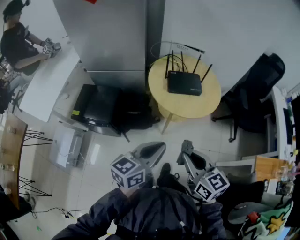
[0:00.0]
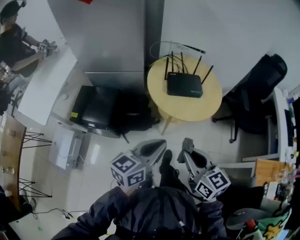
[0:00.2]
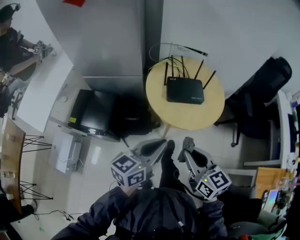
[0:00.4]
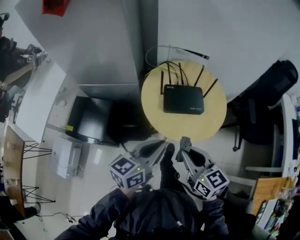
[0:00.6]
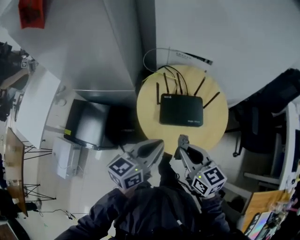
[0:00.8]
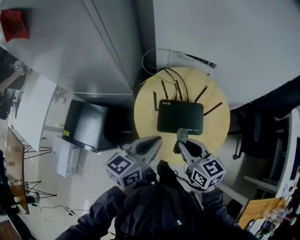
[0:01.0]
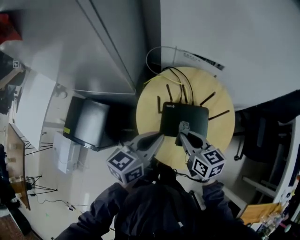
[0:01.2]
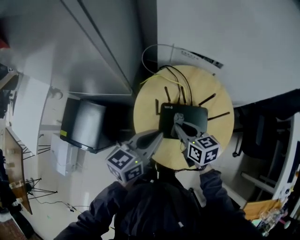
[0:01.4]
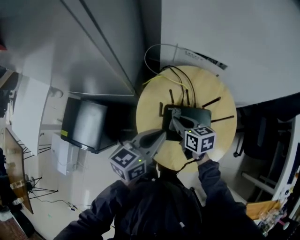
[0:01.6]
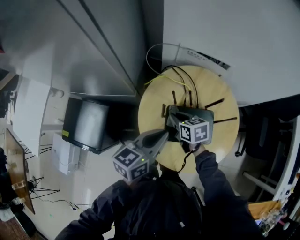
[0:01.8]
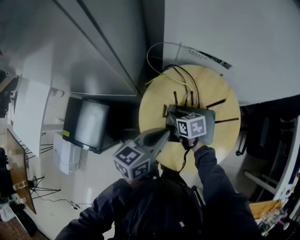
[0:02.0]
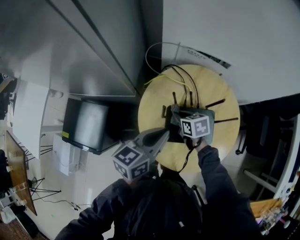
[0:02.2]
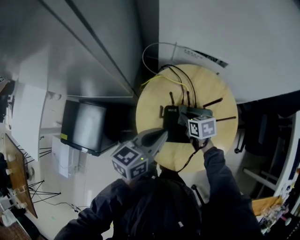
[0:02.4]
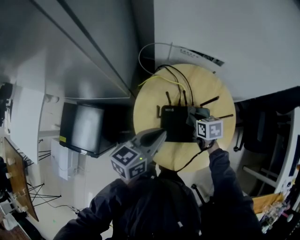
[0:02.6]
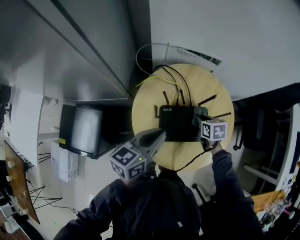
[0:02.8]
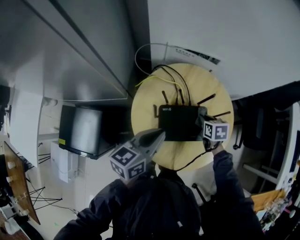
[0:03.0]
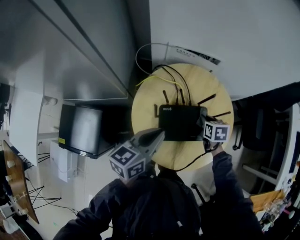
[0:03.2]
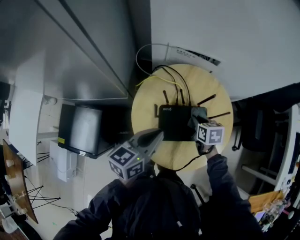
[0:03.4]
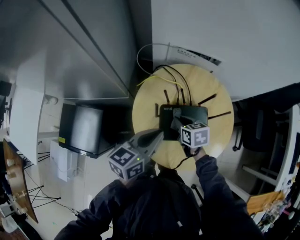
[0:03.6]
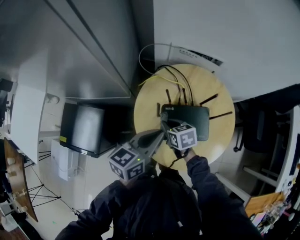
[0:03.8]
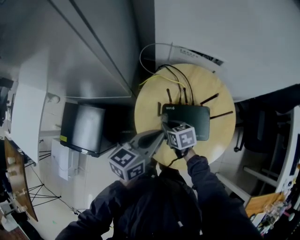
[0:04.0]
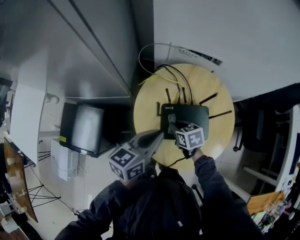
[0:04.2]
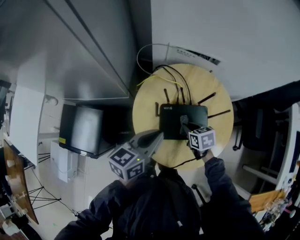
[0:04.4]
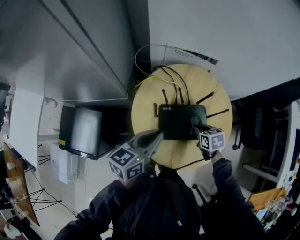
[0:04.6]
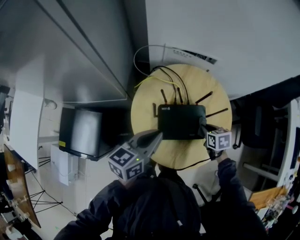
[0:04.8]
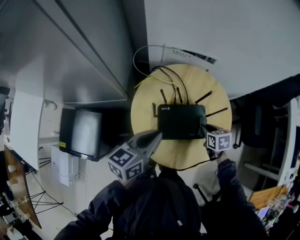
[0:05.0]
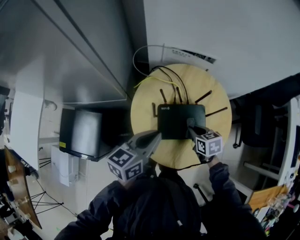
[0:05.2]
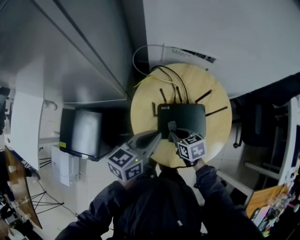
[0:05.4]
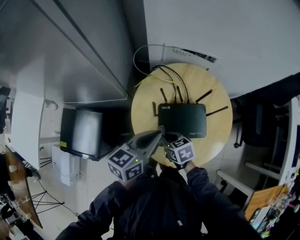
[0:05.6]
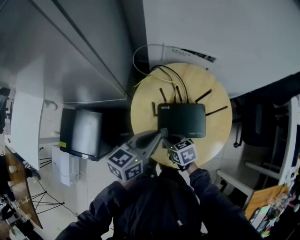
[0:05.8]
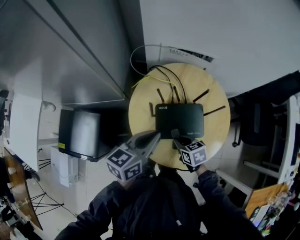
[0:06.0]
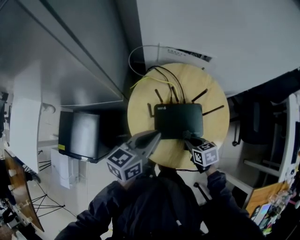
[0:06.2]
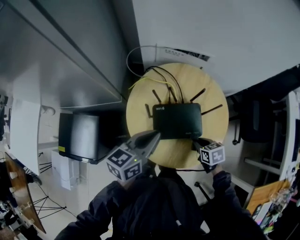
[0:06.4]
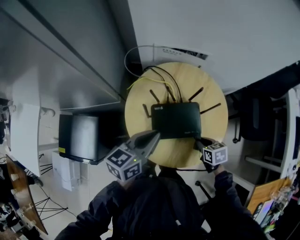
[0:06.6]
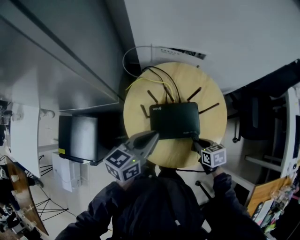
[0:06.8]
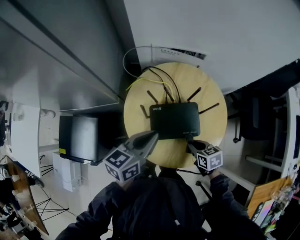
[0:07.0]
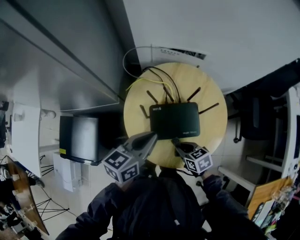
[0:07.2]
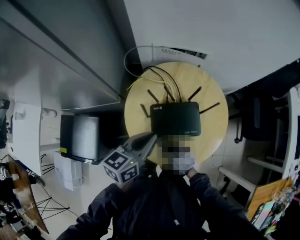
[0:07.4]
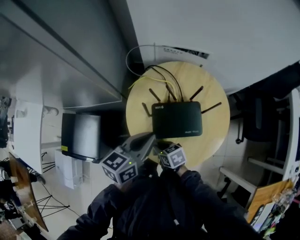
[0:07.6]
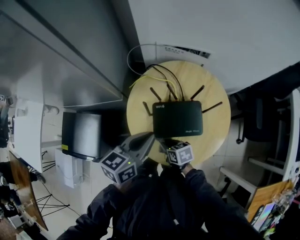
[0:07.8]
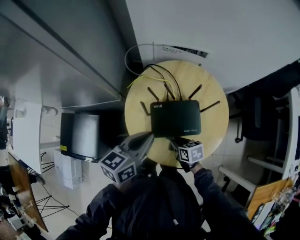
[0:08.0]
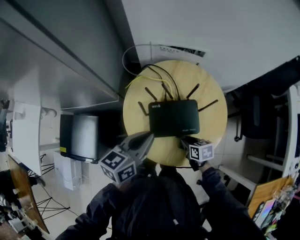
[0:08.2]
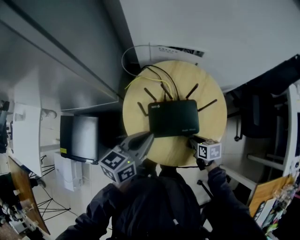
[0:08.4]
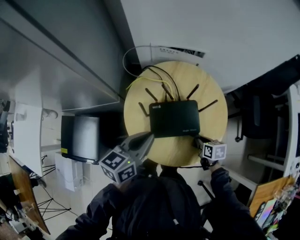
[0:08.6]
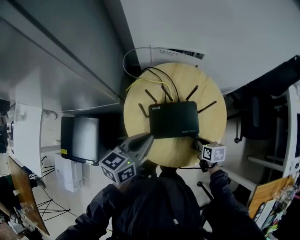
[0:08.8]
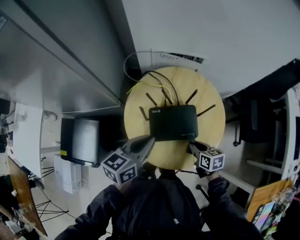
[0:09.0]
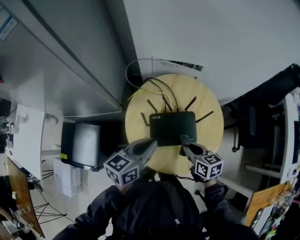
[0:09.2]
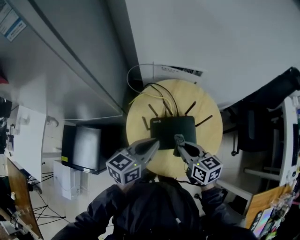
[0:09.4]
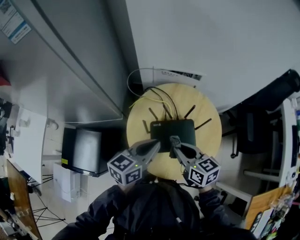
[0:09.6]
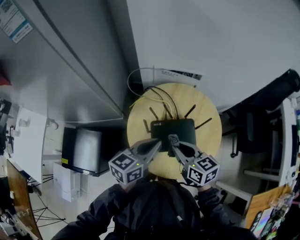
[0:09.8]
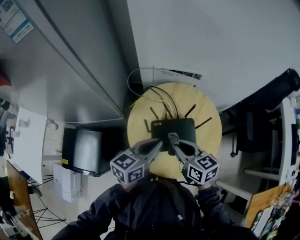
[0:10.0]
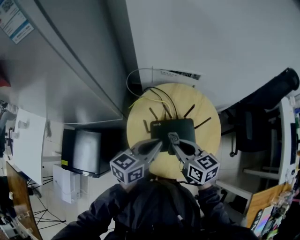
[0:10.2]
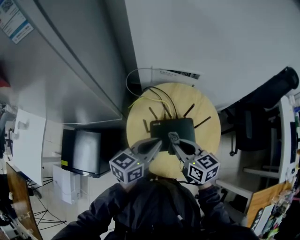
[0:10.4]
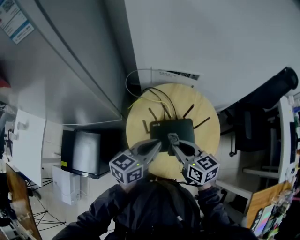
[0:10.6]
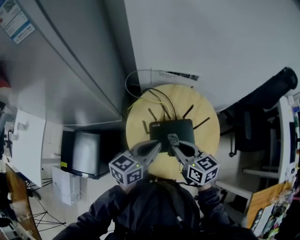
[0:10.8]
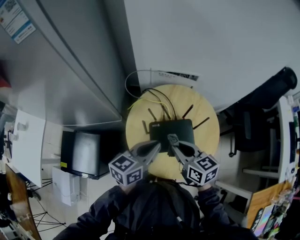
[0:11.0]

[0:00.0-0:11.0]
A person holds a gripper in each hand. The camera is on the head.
0:00.0 to 0:01.6: The two grippers travel together, forward, approximately 50 cm. The right gripper rotates about 30 degrees.
0:01.6 to 0:03.2: The right gripper goes approximately 20 cm to the right, and swivels approximately 30 degrees.
0:03.2 to 0:04.8: The right gripper travels backward by about 5 cm, and travels to the left and back again, roughly 20 cm each way.
0:04.8 to 0:06.2: The right gripper goes about 10 cm backward, and moves approximately 20 cm to the left and comes back.
0:06.2 to 0:07.8: The right gripper shifts roughly 10 cm to the left.
0:07.8 to 0:09.4: The right gripper travels upward and to the right by roughly 20 cm, and turns by some 30 degrees.
0:09.4 to 0:11.0: There are only small adjustments of the grippers.

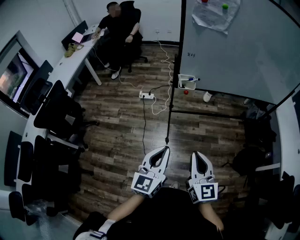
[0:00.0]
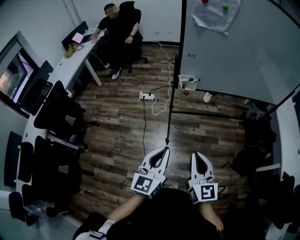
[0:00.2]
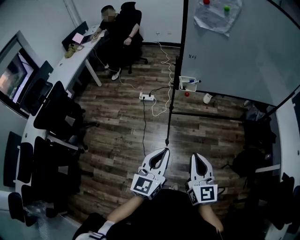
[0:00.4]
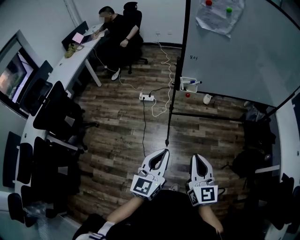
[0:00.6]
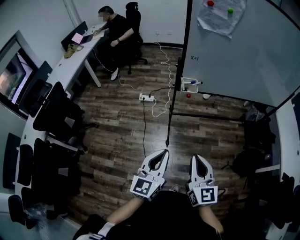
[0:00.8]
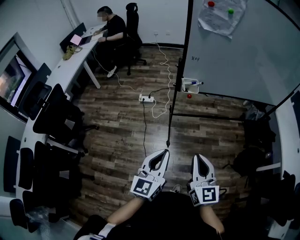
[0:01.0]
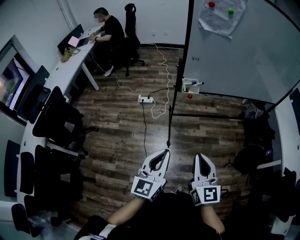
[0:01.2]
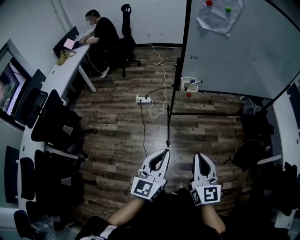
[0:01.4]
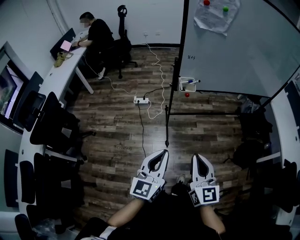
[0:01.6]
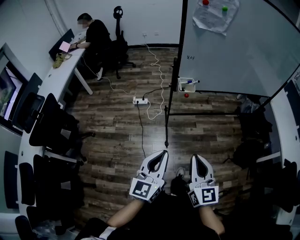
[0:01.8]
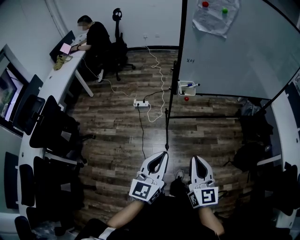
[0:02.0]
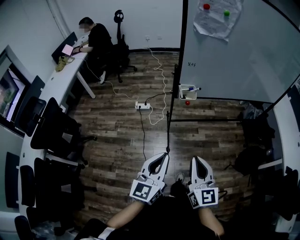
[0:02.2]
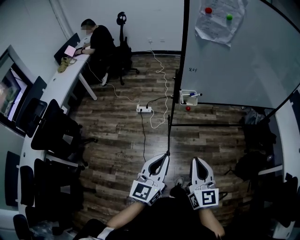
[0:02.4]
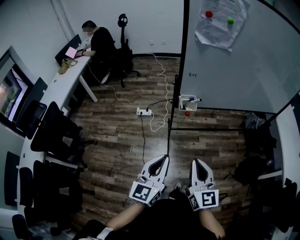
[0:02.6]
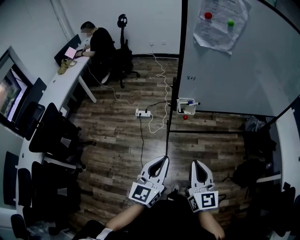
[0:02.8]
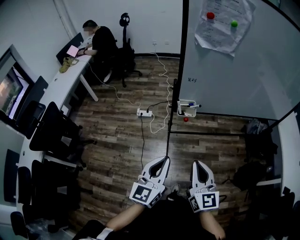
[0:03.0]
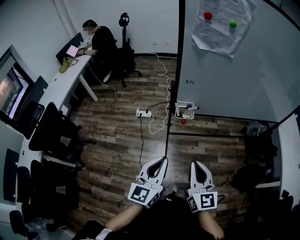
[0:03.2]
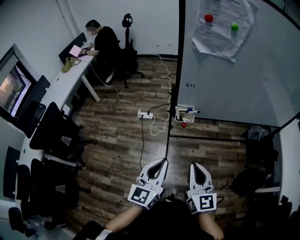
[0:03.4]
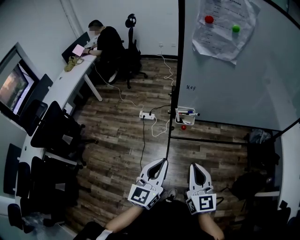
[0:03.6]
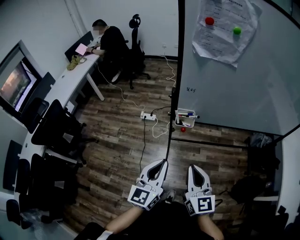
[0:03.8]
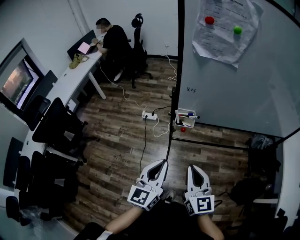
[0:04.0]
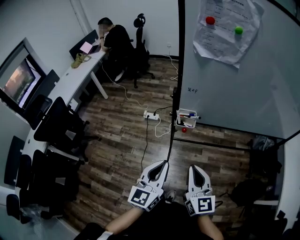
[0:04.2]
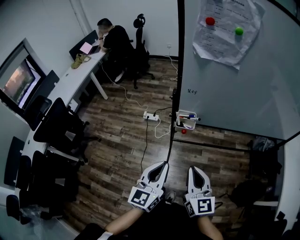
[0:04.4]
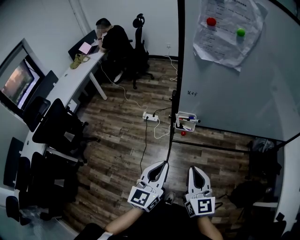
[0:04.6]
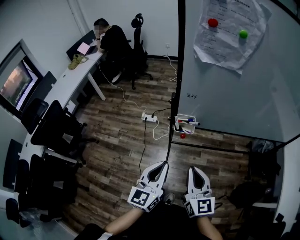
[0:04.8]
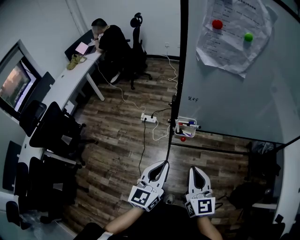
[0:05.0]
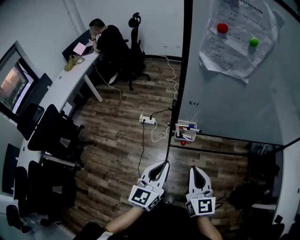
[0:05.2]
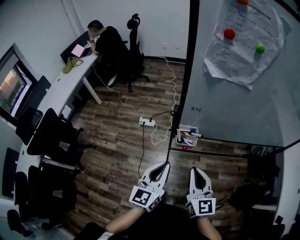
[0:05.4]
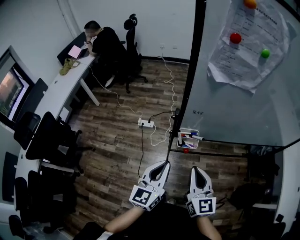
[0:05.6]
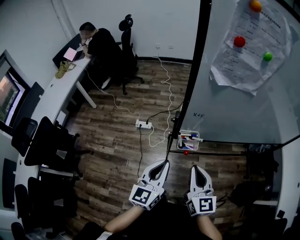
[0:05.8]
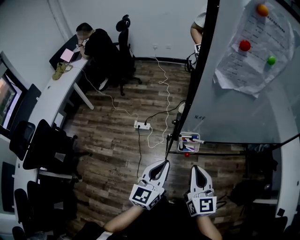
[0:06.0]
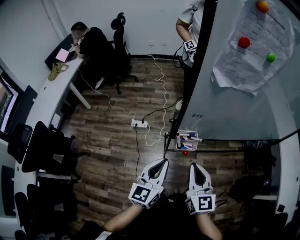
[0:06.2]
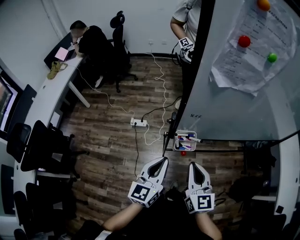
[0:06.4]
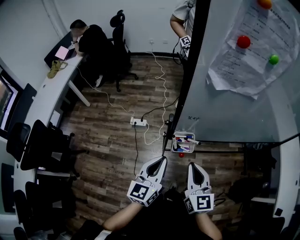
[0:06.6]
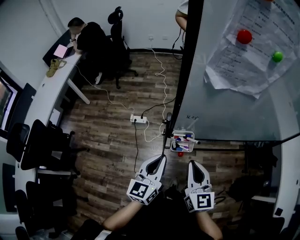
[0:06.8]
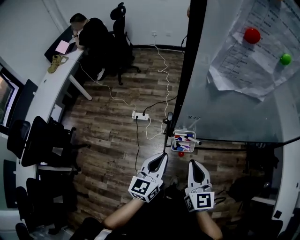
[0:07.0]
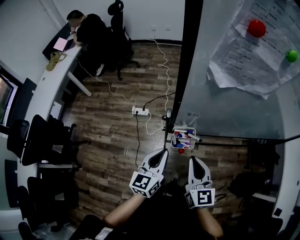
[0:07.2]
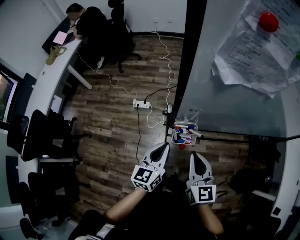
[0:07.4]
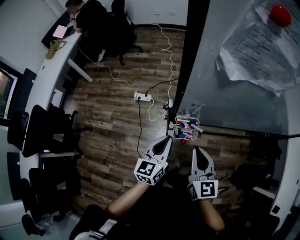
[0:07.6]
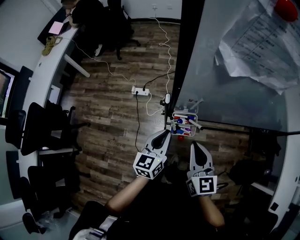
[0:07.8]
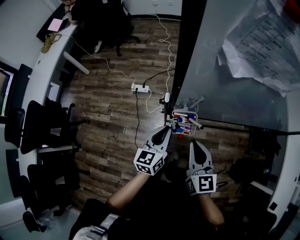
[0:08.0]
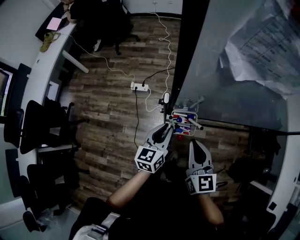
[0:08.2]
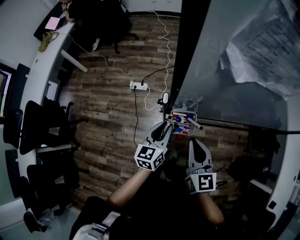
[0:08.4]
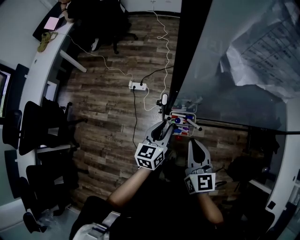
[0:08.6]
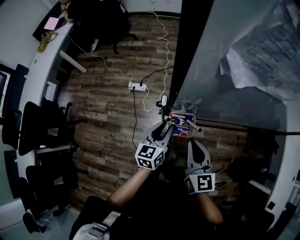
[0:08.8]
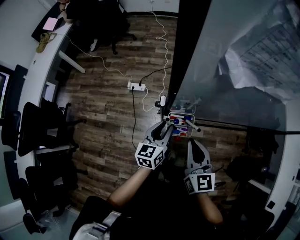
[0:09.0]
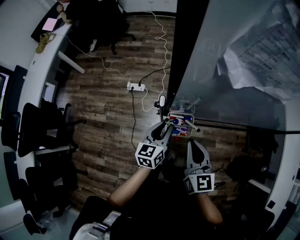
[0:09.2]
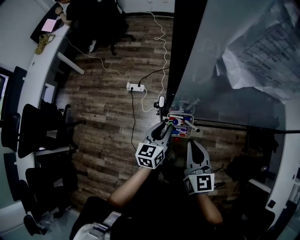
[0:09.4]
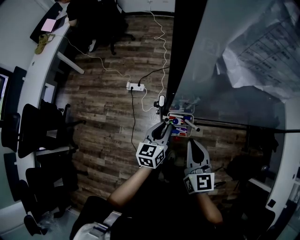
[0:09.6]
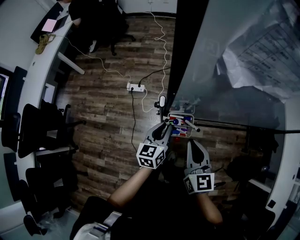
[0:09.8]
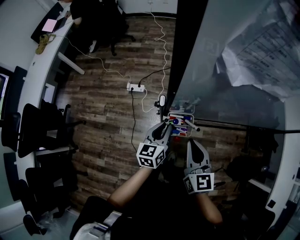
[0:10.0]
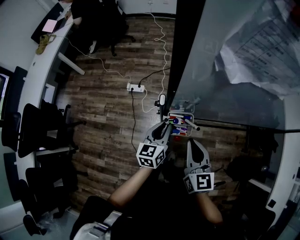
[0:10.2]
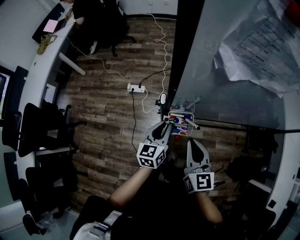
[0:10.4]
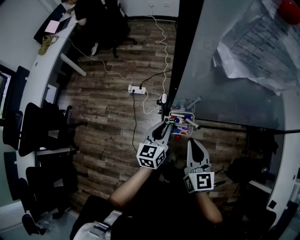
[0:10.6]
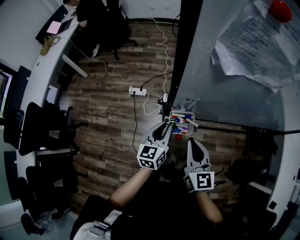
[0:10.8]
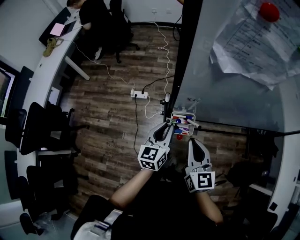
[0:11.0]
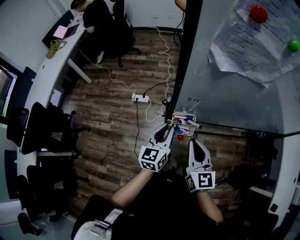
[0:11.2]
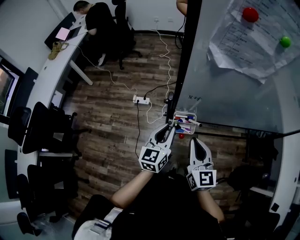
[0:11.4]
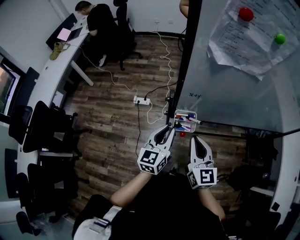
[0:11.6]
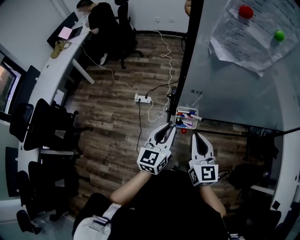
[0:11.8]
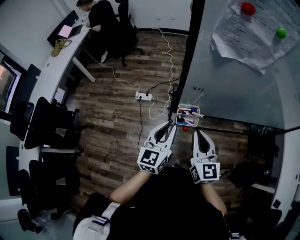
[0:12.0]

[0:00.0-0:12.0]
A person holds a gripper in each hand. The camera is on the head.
0:00.0 to 0:01.6: The two grippers go some 5 cm to the left.
0:01.6 to 0:03.0: The grippers both shift forward by some 15 cm.
0:03.0 to 0:04.4: The right gripper goes approximately 5 cm forward. The left gripper moves roughly 5 cm.
0:04.4 to 0:06.0: The grippers both shift forward by some 15 cm.
0:06.0 to 0:07.6: The left gripper moves downward and forward, roughly 15 cm, while the right gripper travels forward and downward by about 10 cm.
0:07.6 to 0:09.0: The left gripper goes some 10 cm downward and forward, and opens.
0:09.0 to 0:10.4: Neither gripper changes place.
0:10.4 to 0:12.0: The left gripper shifts approximately 15 cm upward and backward, while the right gripper travels upward by about 5 cm.

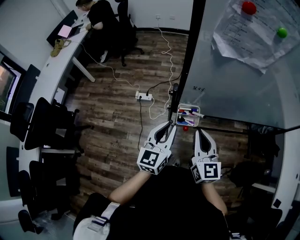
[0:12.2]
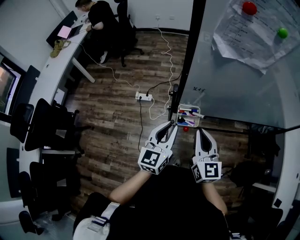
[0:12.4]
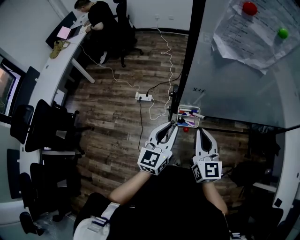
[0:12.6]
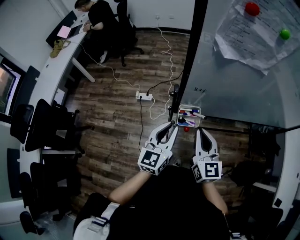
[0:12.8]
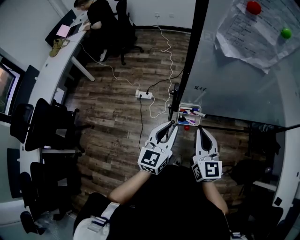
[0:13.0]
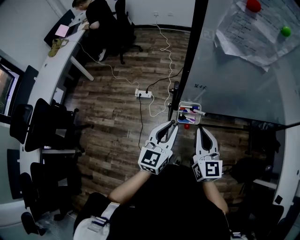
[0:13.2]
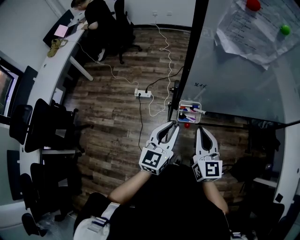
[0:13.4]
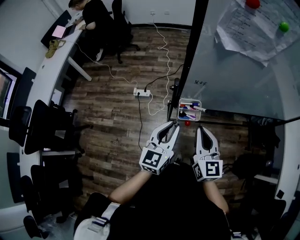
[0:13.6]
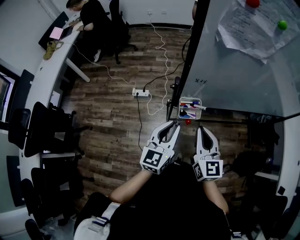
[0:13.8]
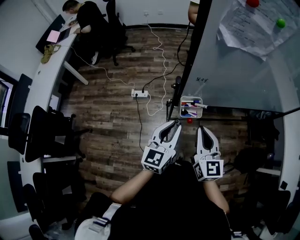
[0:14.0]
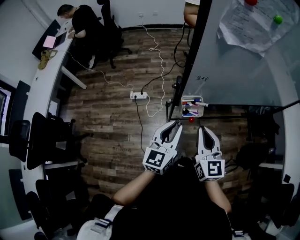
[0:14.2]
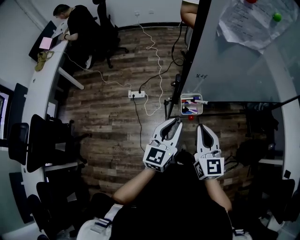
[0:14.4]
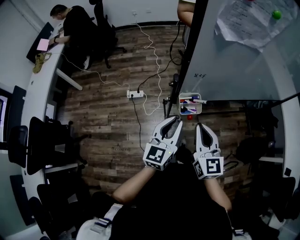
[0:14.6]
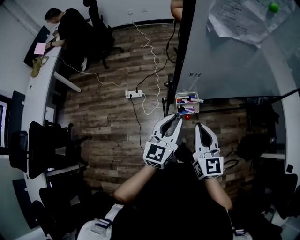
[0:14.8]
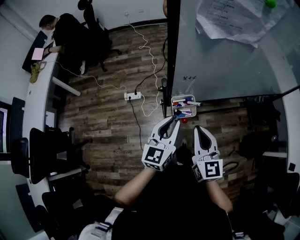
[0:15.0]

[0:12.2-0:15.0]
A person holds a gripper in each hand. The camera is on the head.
0:12.2 to 0:15.0: The grippers move only a little.
